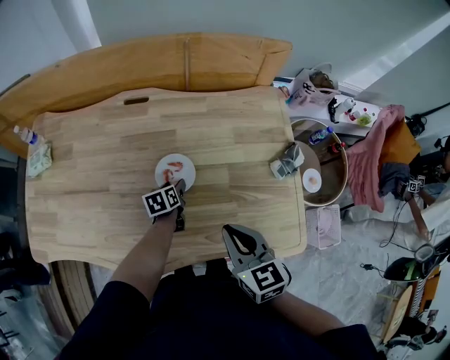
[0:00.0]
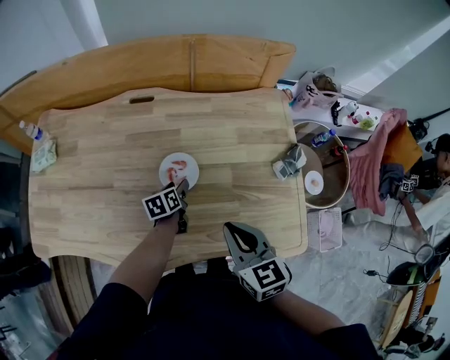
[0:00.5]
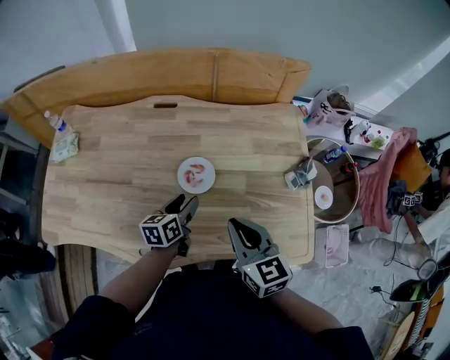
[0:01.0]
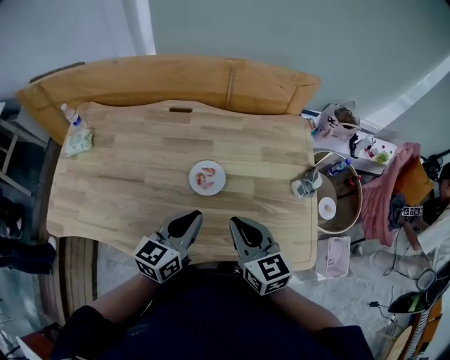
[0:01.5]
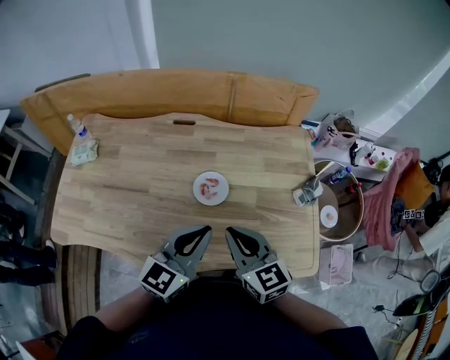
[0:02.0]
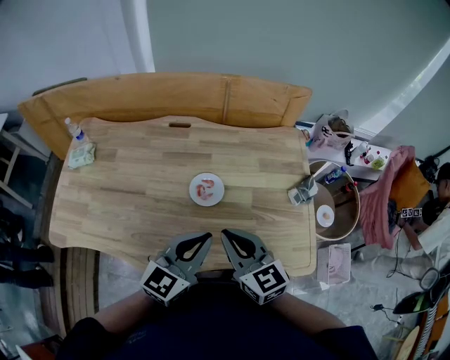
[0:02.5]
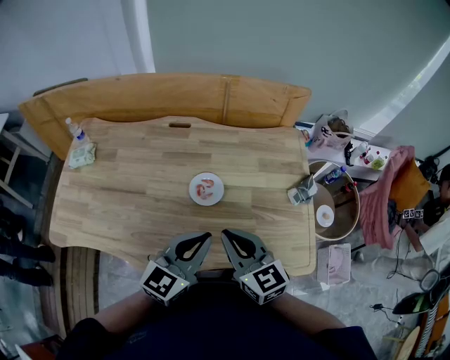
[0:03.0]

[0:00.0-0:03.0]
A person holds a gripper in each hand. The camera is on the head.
0:00.0 to 0:01.5: The right gripper moves upward and to the left, approximately 5 cm. Meanwhile the left gripper travels upward and backward by approximately 30 cm, tips its fingers upward by roughly 30 degrees, and closes its fingers.
0:01.5 to 0:03.0: The left gripper goes roughly 10 cm upward and backward.

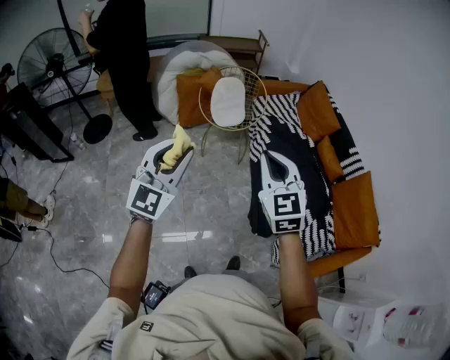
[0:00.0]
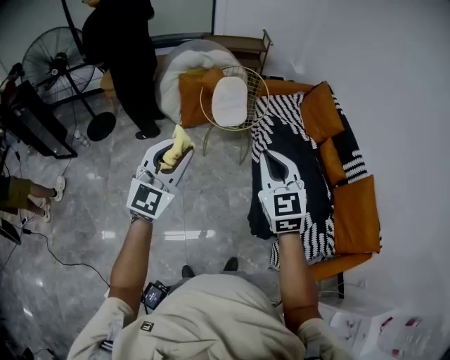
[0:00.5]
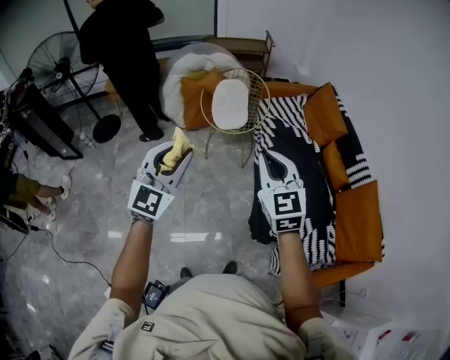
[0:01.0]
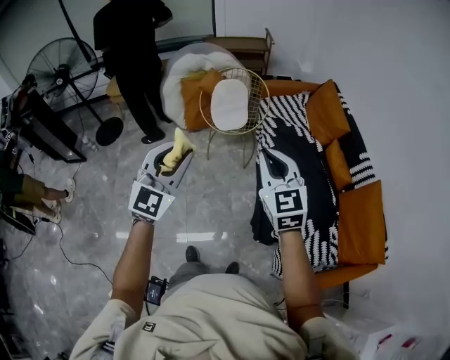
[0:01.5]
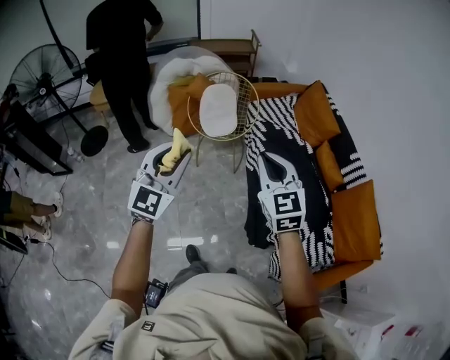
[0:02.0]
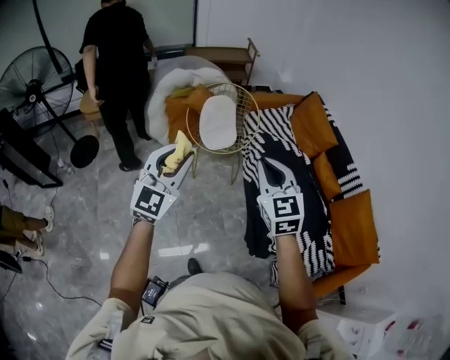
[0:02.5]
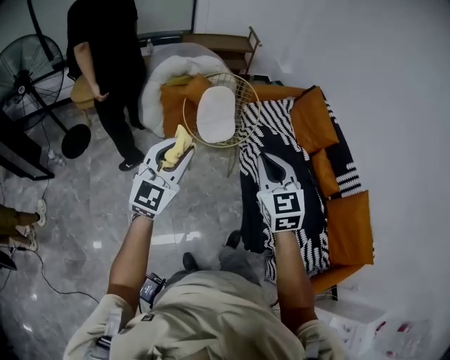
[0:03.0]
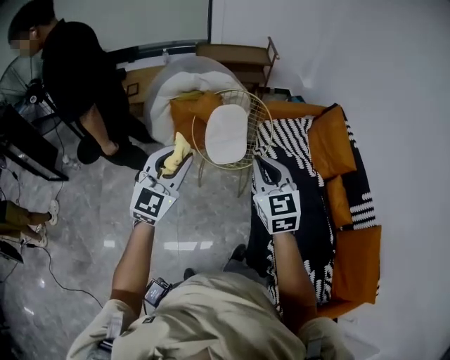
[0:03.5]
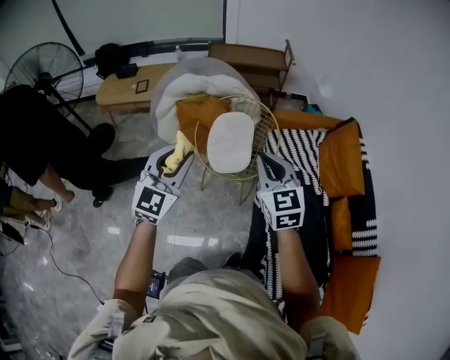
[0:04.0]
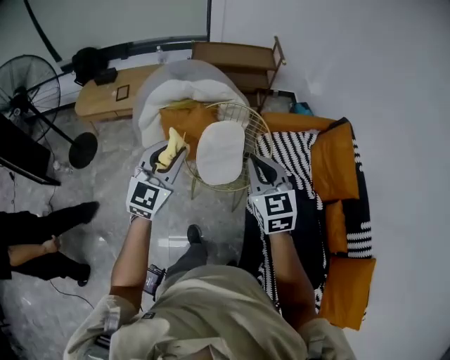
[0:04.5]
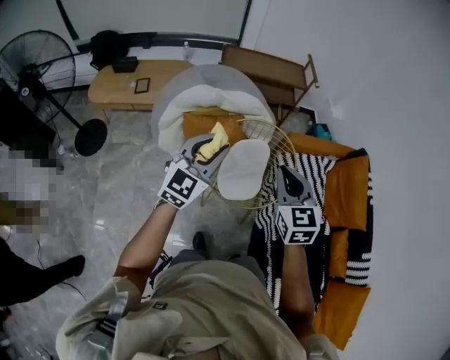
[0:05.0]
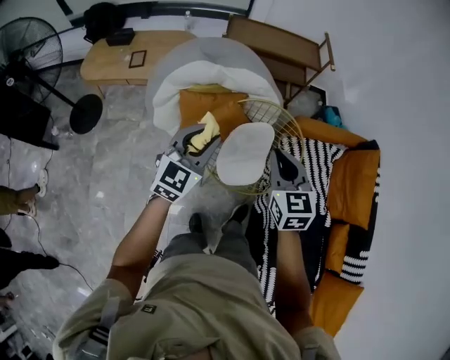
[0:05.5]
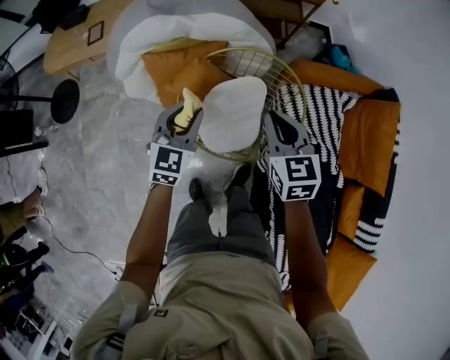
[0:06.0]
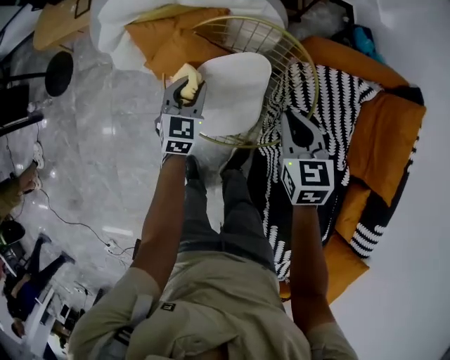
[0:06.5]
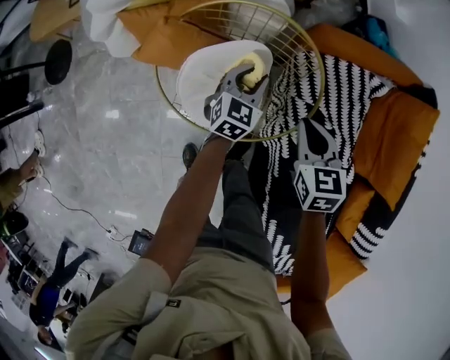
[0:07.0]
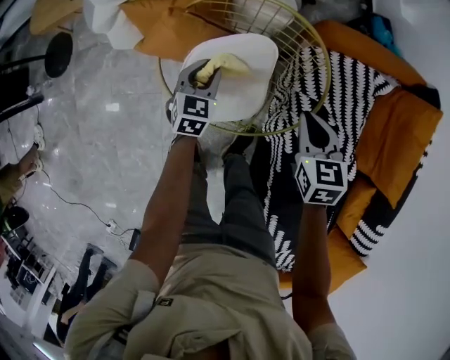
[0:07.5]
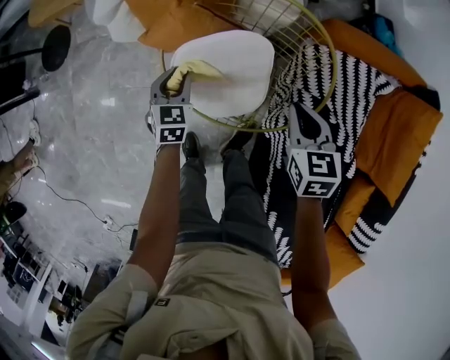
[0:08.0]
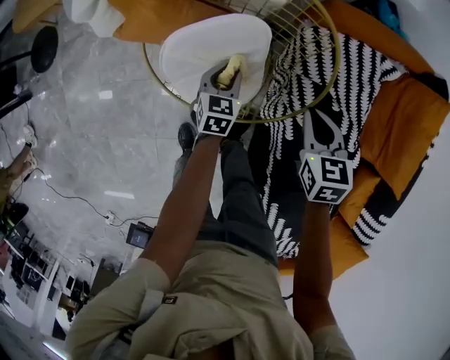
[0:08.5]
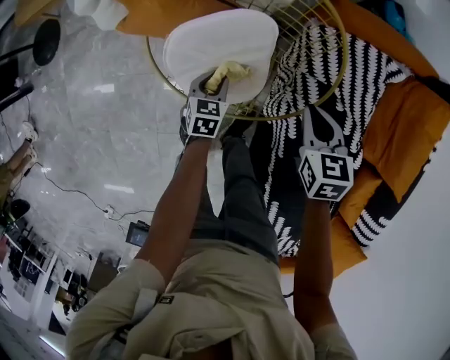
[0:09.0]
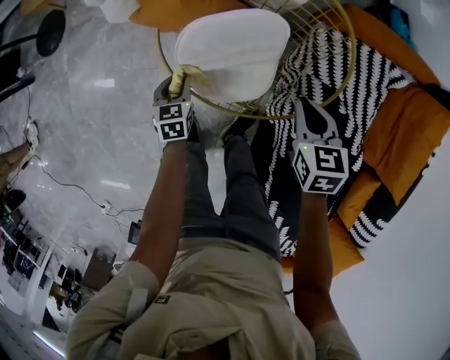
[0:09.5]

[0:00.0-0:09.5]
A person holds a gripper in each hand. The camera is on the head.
0:00.0 to 0:02.0: The grippers both shift forward and to the right by roughly 15 cm.
0:02.0 to 0:04.0: Both grippers travel together forward, approximately 40 cm.
0:04.0 to 0:05.5: The left gripper heads forward and downward, covering about 35 cm. Meanwhile the right gripper travels forward and to the left by some 30 cm.
0:05.5 to 0:07.5: The right gripper moves downward and to the right, some 40 cm, and turns by about 30 degrees. The left gripper travels downward by roughly 40 cm, and swivels approximately 30 degrees.
0:07.5 to 0:09.5: The left gripper goes left and right, roughly 20 cm each way, reversing 2 times, and rotates roughly 30 degrees, while the right gripper swings left and right, roughly 5 cm each way, with 2 reversals.

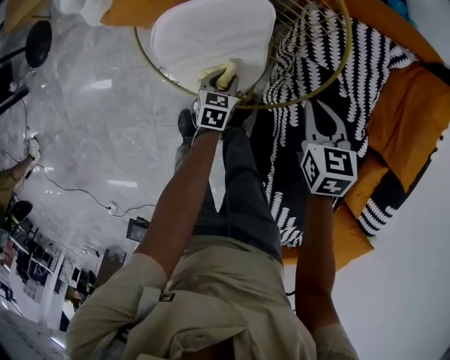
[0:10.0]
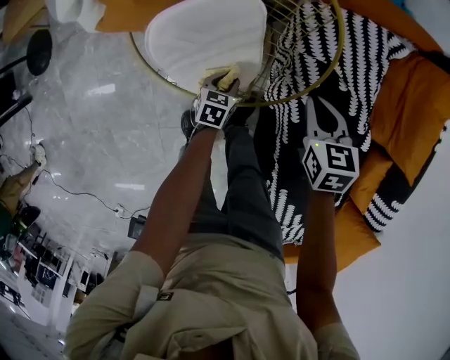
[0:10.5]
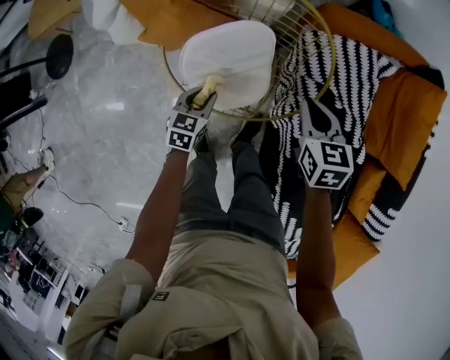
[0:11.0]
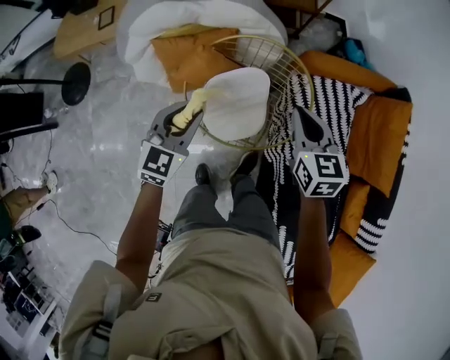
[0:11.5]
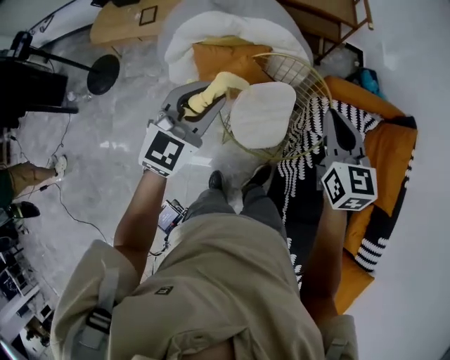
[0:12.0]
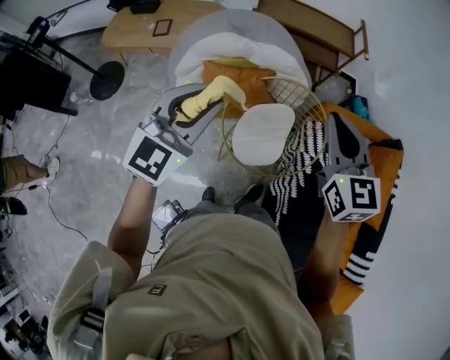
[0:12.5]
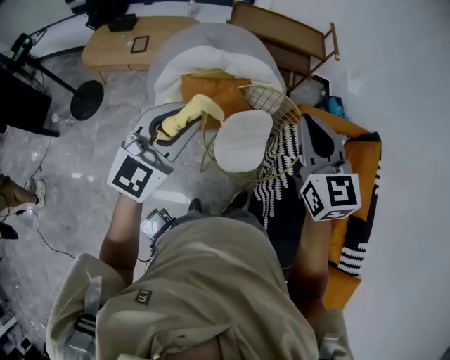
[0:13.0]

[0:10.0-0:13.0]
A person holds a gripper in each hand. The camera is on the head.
0:10.0 to 0:11.5: The left gripper travels upward by approximately 50 cm, and points its fingers some 30 degrees further upward; the right gripper moves upward, roughly 30 cm, and turns by approximately 20 degrees.
0:11.5 to 0:13.0: The grippers both shift upward and to the left by roughly 30 cm. The right gripper swivels some 30 degrees.

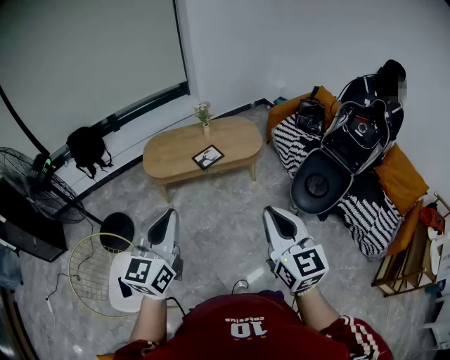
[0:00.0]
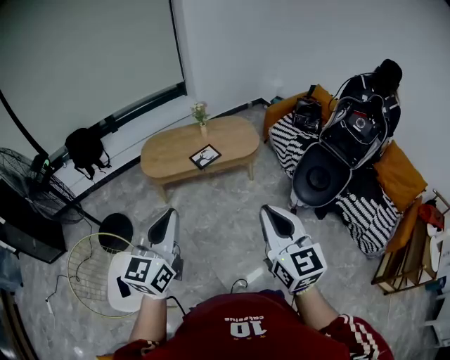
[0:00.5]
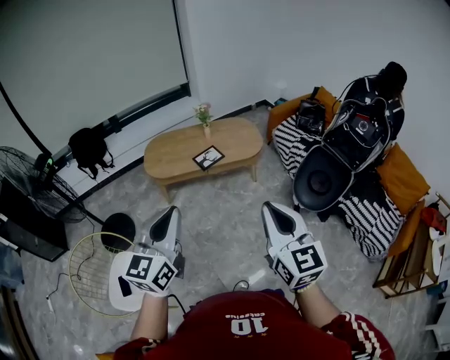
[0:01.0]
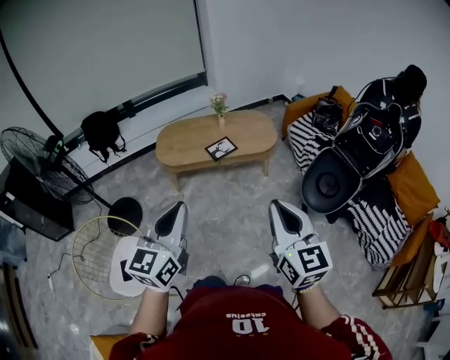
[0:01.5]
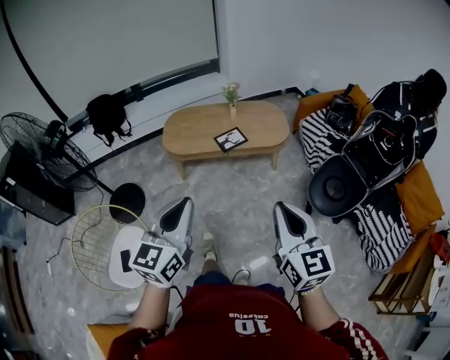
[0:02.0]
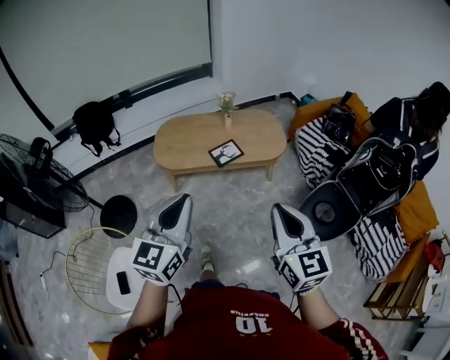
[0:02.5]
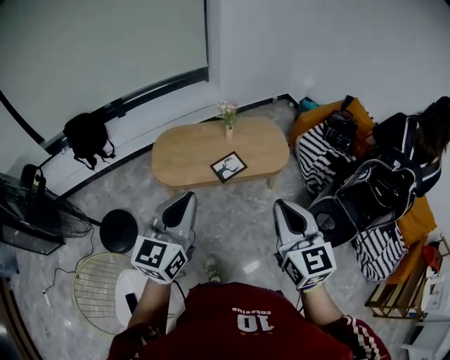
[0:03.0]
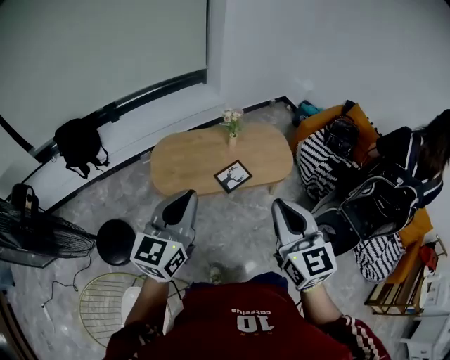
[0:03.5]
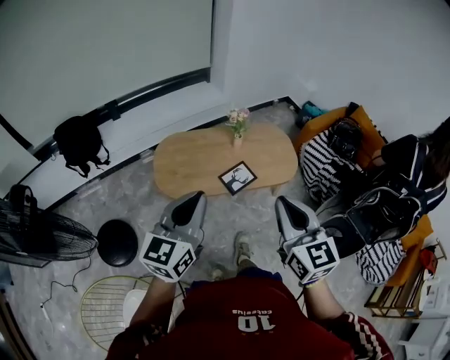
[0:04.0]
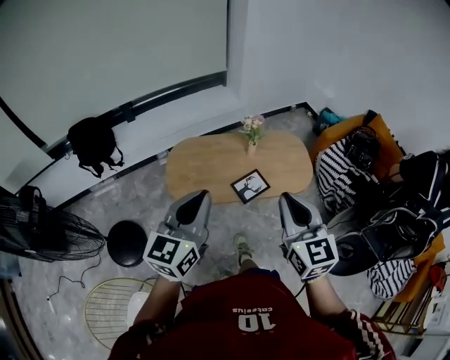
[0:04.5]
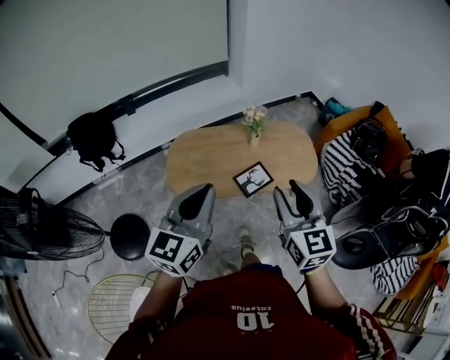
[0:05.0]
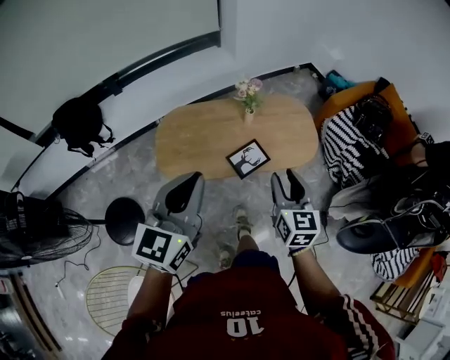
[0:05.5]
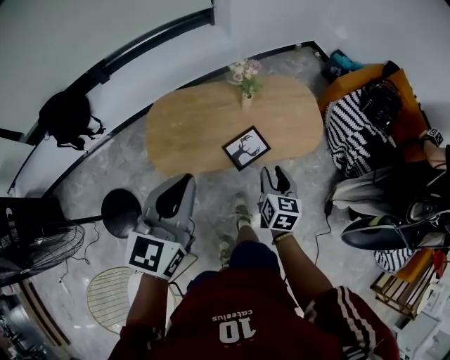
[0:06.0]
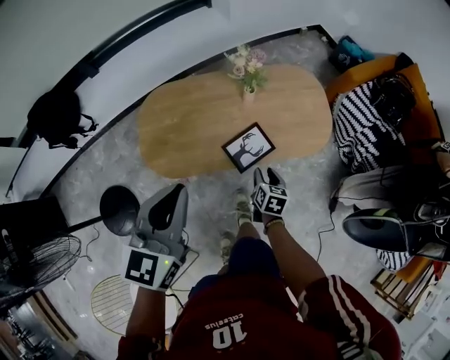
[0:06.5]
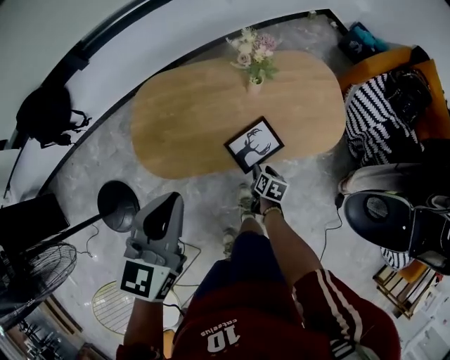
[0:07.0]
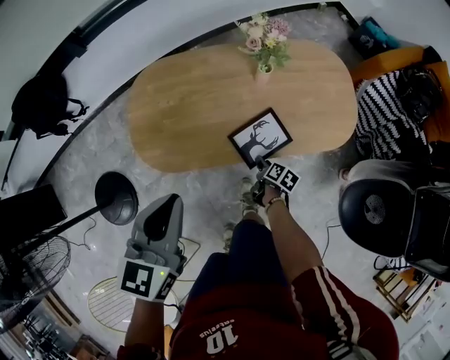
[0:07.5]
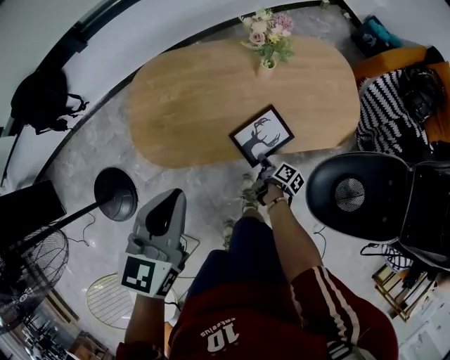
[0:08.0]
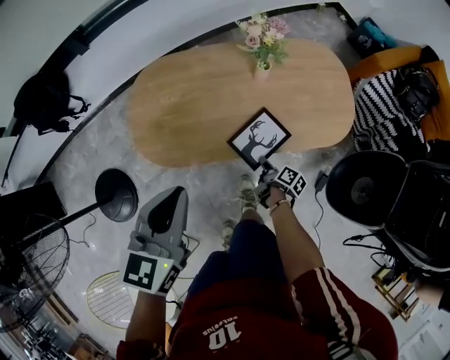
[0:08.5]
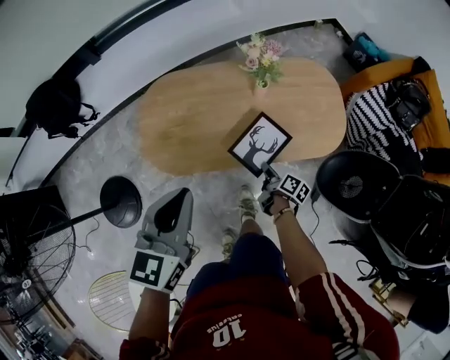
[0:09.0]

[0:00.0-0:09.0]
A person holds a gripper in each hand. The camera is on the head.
0:00.0 to 0:02.0: The grippers make only small movements.
0:02.0 to 0:04.5: Both grippers are carried forward and to the left, approximately 50 cm.
0:04.5 to 0:07.0: The right gripper moves downward, about 60 cm, tips its fingers downward by some 50 degrees, and opens; the left gripper shifts some 30 cm downward and forward, and rotates approximately 20 degrees.
0:07.0 to 0:09.0: The right gripper travels upward by some 5 cm, swivels roughly 40 degrees, and closes up.

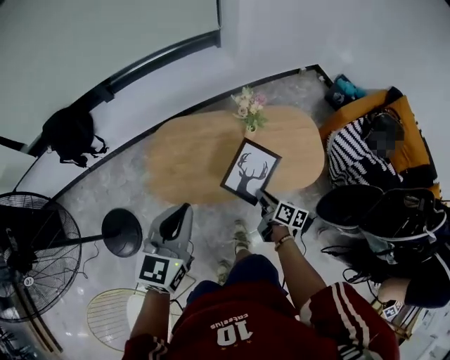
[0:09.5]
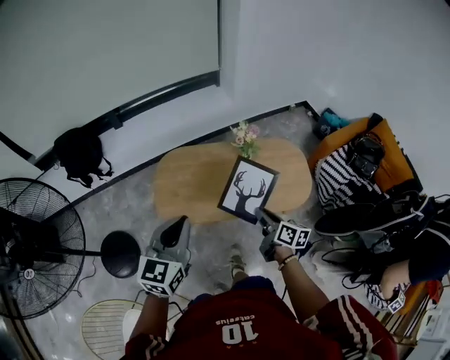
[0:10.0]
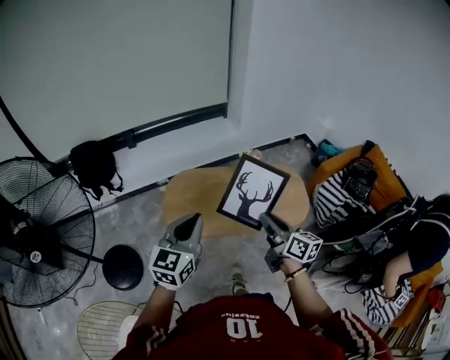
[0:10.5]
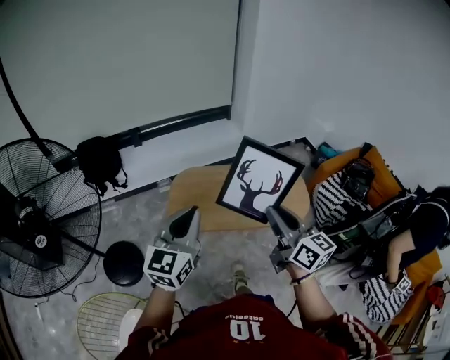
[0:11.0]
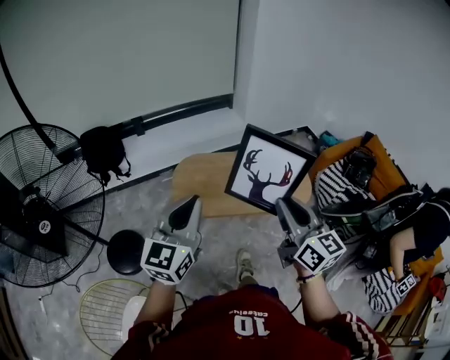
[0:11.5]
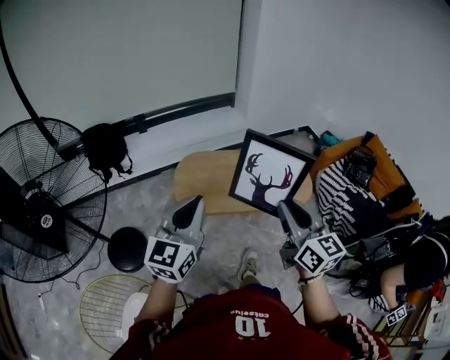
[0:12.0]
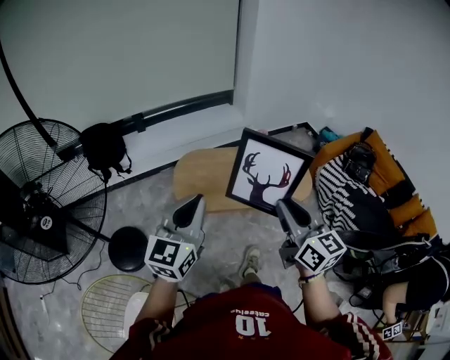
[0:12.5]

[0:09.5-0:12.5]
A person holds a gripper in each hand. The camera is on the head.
0:09.5 to 0:11.0: The right gripper is displaced upward and backward by approximately 50 cm, and rotates about 50 degrees; the left gripper goes roughly 25 cm backward, upward and to the left.
0:11.0 to 0:12.5: Both grippers travel together backward, approximately 5 cm.
